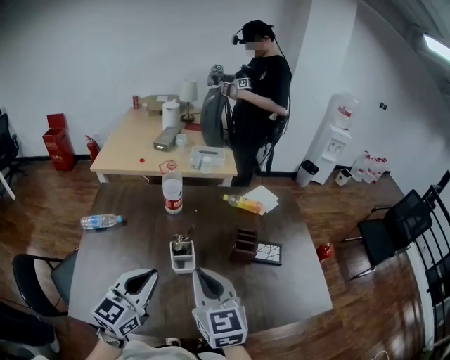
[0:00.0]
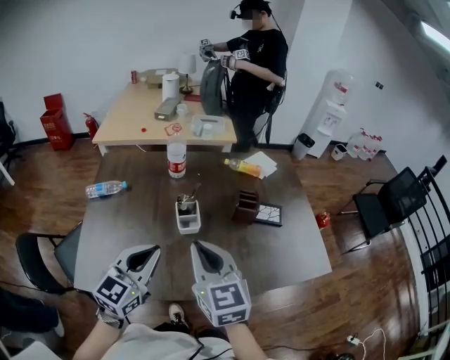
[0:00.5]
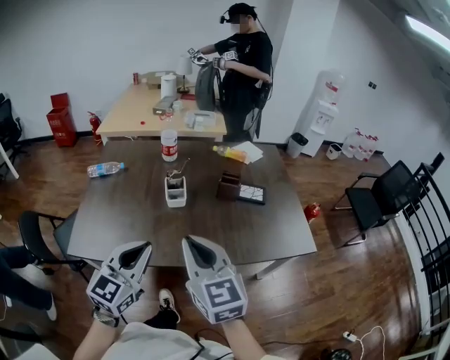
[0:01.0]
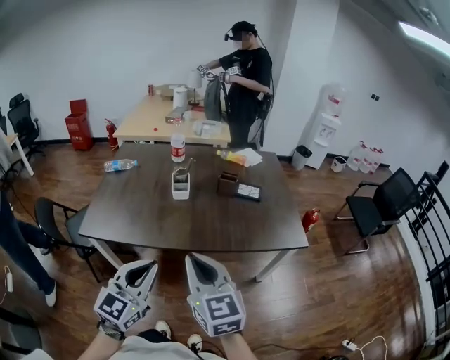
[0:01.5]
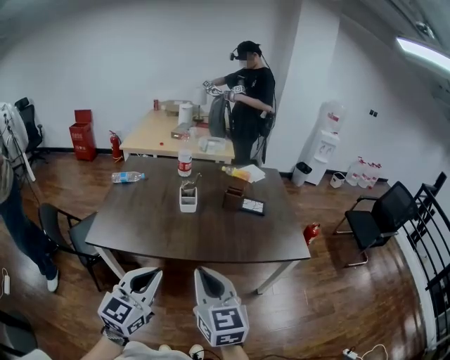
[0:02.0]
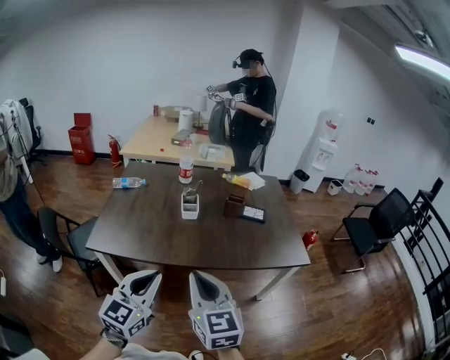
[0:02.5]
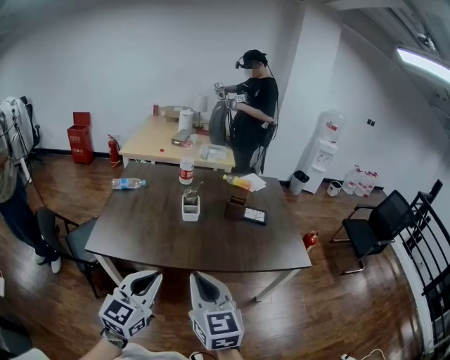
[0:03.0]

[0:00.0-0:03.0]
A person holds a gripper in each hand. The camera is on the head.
0:00.0 to 0:01.5: Both grippers move backward, roughly 40 cm.
0:01.5 to 0:03.0: The grippers both shift to the left by approximately 5 cm.

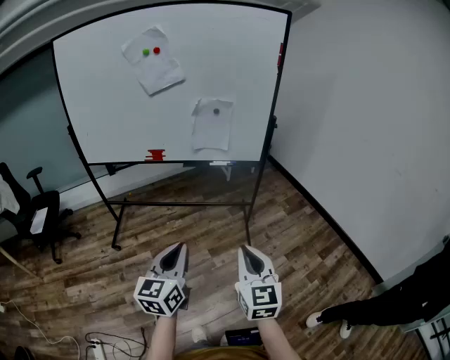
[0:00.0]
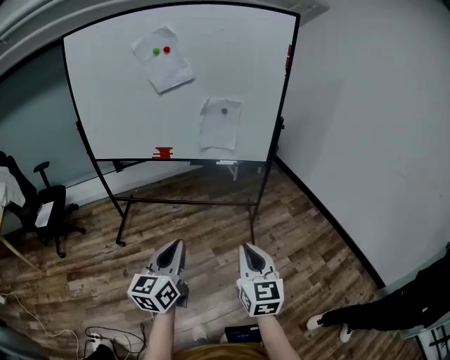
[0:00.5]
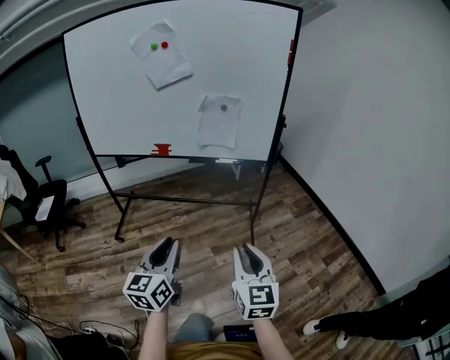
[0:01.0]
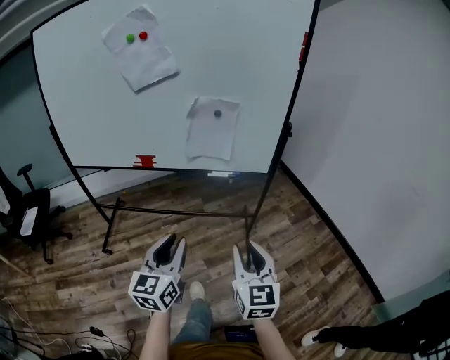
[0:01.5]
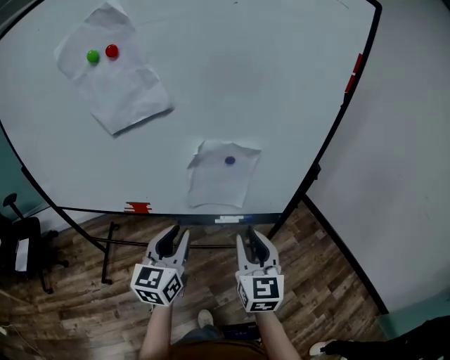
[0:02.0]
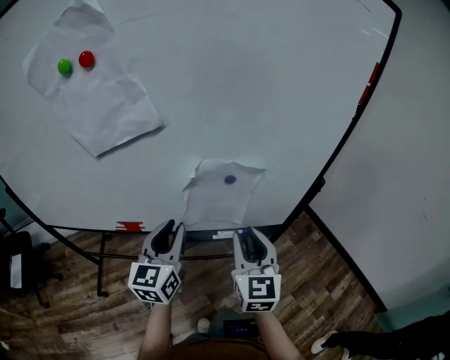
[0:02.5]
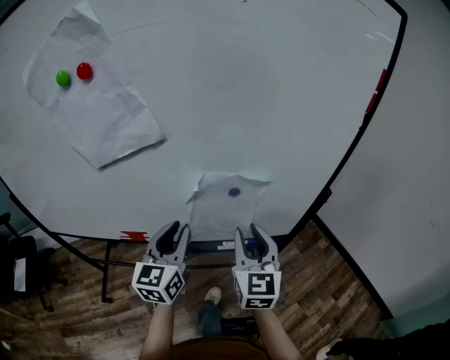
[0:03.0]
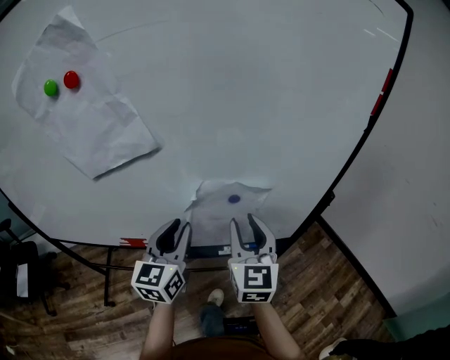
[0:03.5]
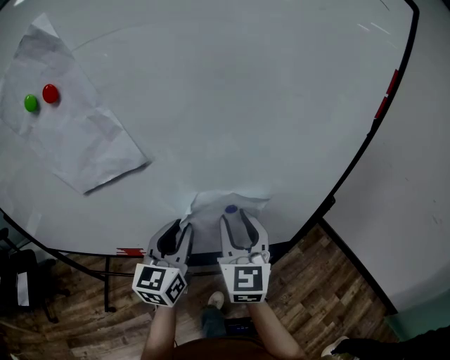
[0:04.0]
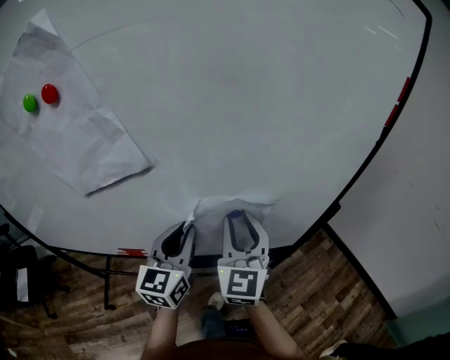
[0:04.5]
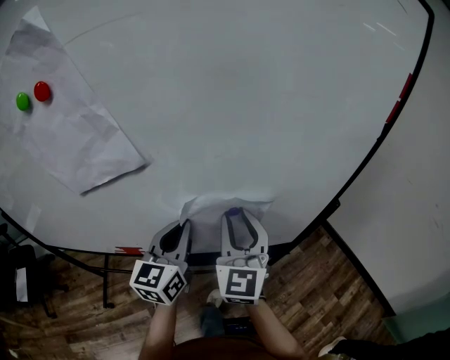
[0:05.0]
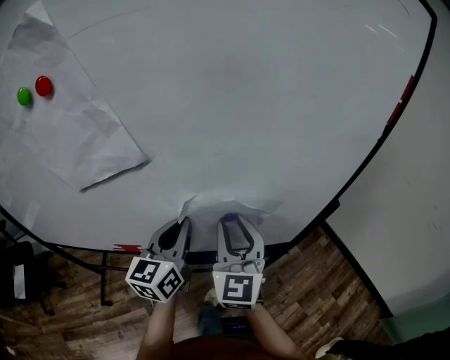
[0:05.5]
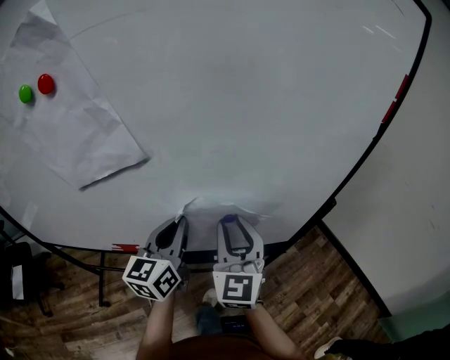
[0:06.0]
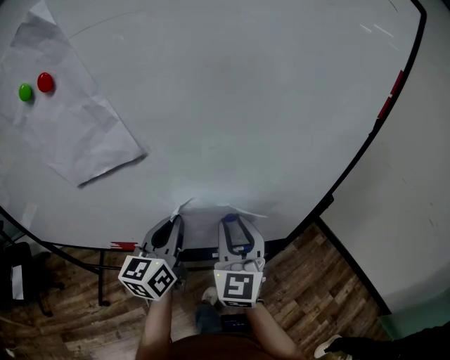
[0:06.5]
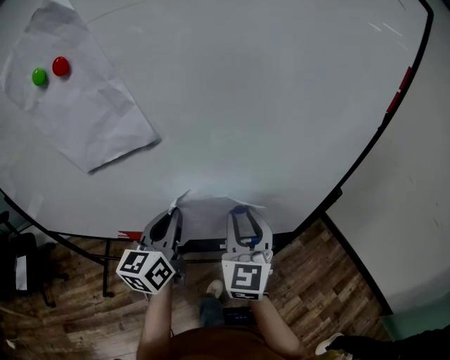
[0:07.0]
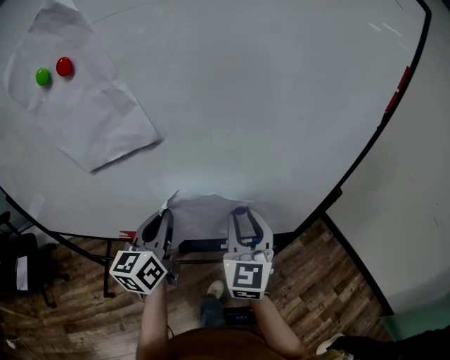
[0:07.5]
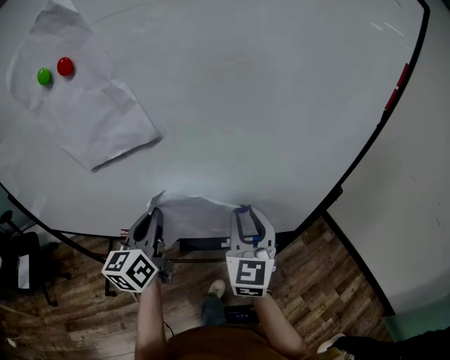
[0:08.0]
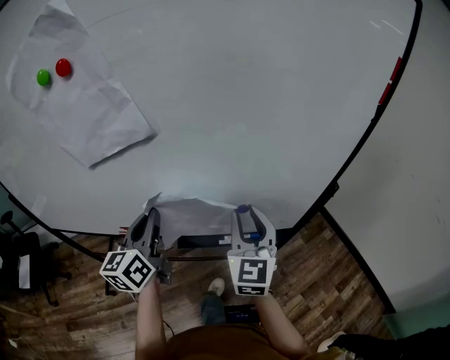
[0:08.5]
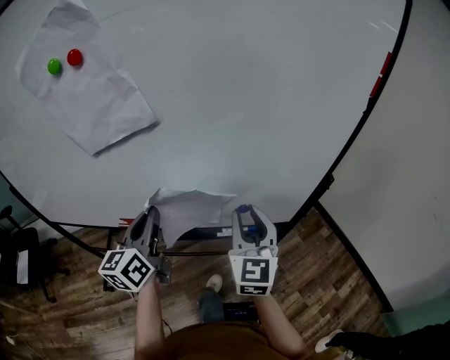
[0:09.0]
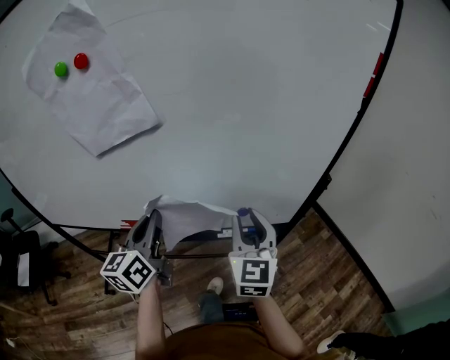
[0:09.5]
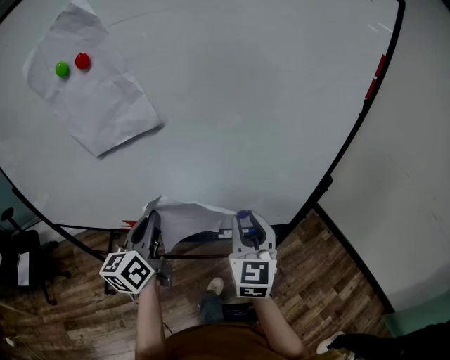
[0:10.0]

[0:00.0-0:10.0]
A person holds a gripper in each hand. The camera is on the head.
0:00.0 to 0:02.0: Both grippers are carried forward, some 50 cm. The right gripper opens its fingers, while the left gripper opens up.
0:02.0 to 0:04.0: The grippers both shift forward by roughly 20 cm.
0:04.0 to 0:06.0: The left gripper closes up.
0:06.0 to 0:08.0: The left gripper is displaced to the left by about 10 cm.
0:08.0 to 0:10.0: Both grippers move backward, some 5 cm.

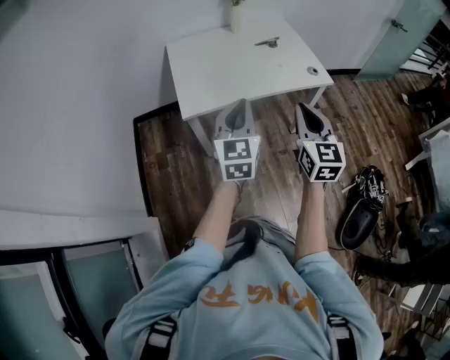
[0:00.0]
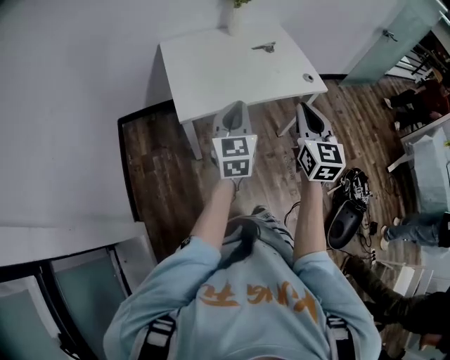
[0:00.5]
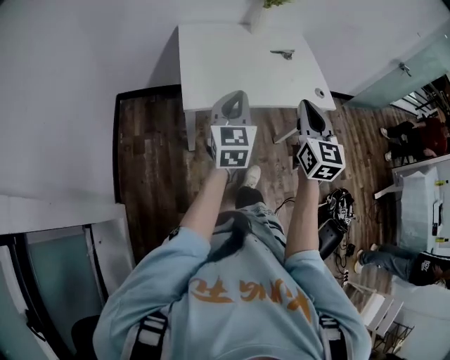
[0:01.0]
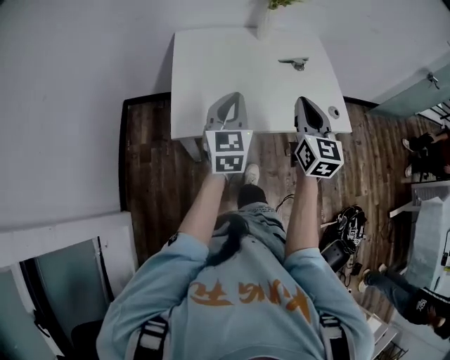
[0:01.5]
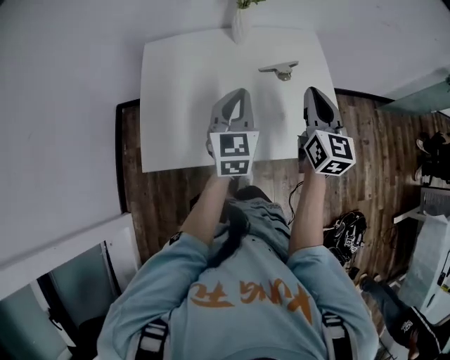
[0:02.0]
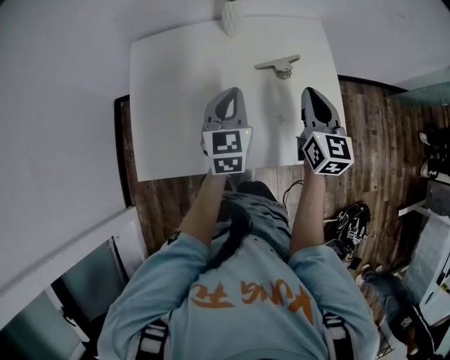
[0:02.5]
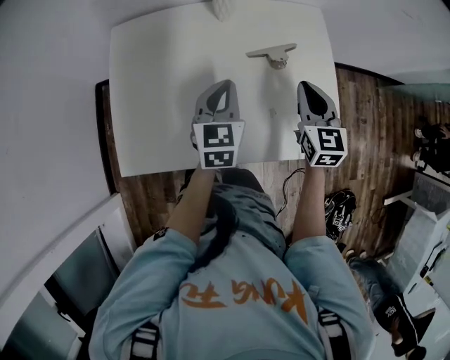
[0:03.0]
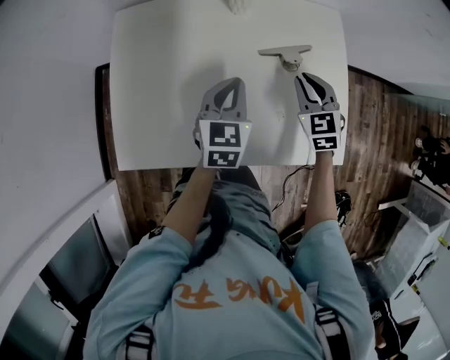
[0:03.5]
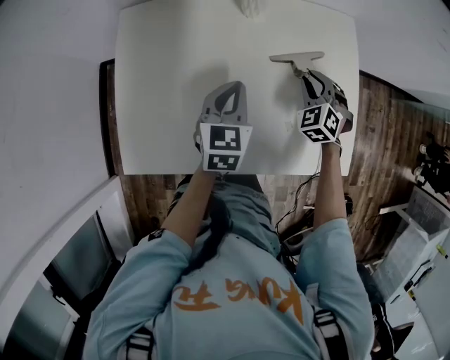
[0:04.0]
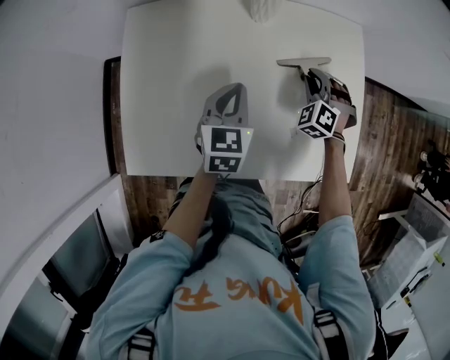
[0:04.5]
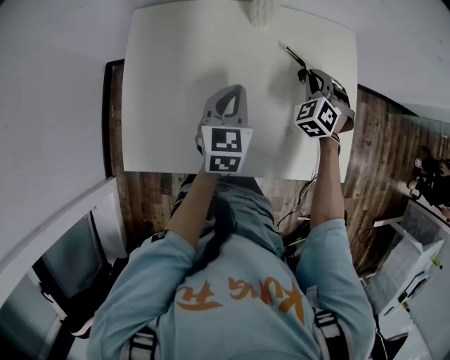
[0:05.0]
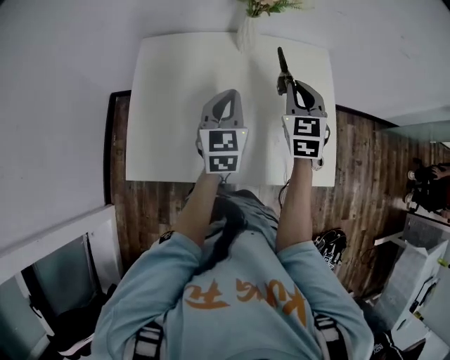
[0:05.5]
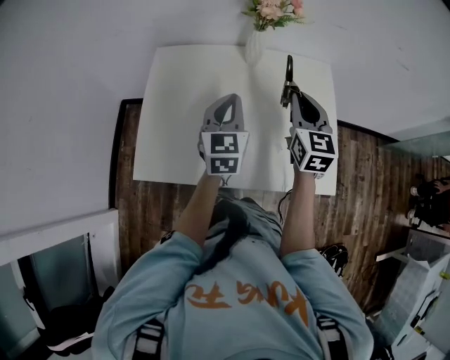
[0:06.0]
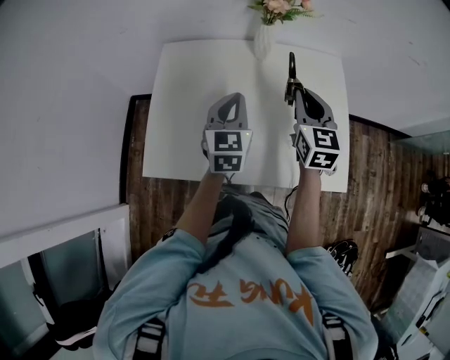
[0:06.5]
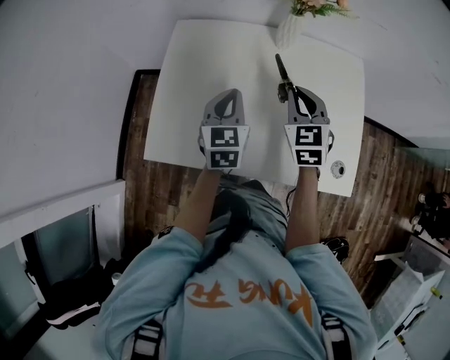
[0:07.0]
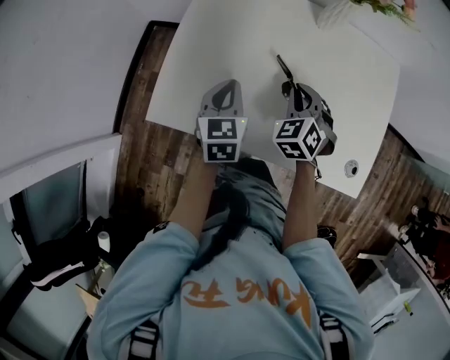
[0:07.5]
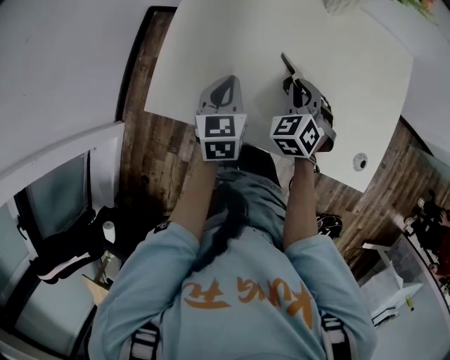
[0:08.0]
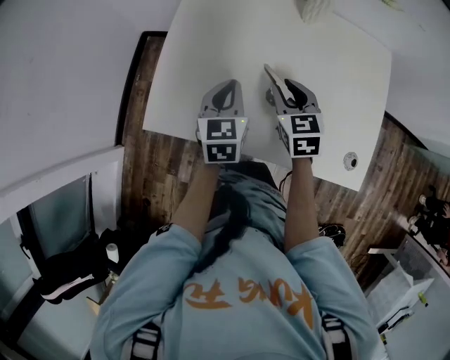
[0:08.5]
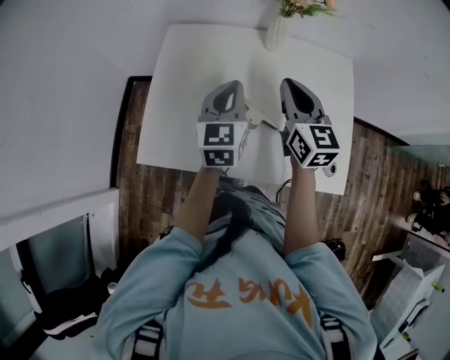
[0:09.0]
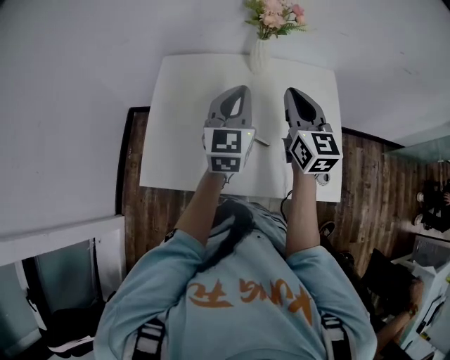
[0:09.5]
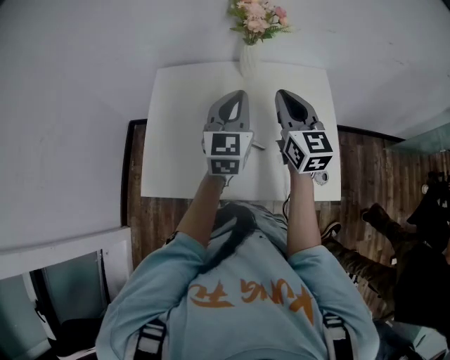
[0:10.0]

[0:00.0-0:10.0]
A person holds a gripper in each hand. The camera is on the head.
0:00.0 to 0:02.0: The two grippers travel together, forward, approximately 40 cm.
0:02.0 to 0:04.0: The left gripper goes roughly 15 cm downward and forward. The right gripper heads downward and forward, covering approximately 30 cm, rotates around the line of its fingers by about 60 degrees, counterclockwise from behind, and opens up.
0:04.0 to 0:06.0: The left gripper heads upward, covering some 10 cm, while the right gripper moves upward, approximately 20 cm, and twists some 50 degrees clockwise, seen from behind.
0:06.0 to 0:08.0: Both grippers move downward and to the left, approximately 25 cm. The right gripper tilts its fingers about 30 degrees downward, while the left gripper changes its angle by roughly 30 degrees.
0:08.0 to 0:10.0: Both grippers move upward and to the right, roughly 30 cm. The right gripper angles its fingers upward, by roughly 40 degrees. Meanwhile the left gripper swivels about 40 degrees.

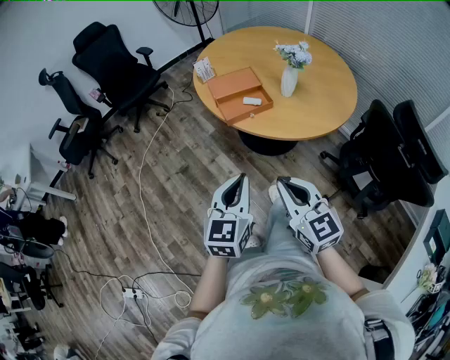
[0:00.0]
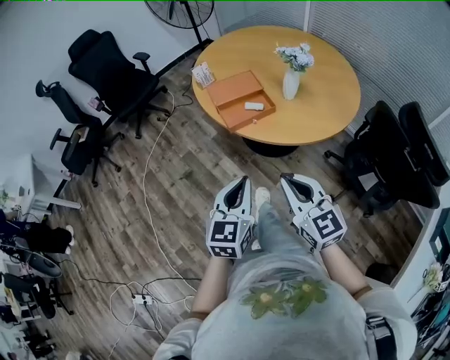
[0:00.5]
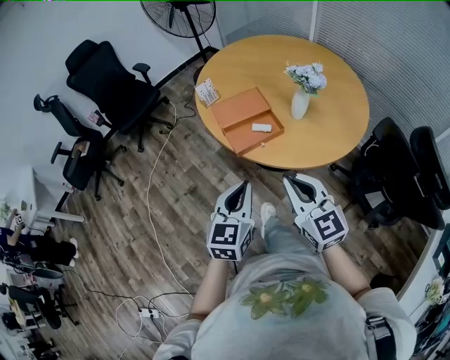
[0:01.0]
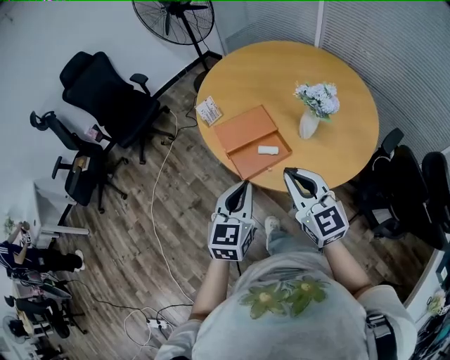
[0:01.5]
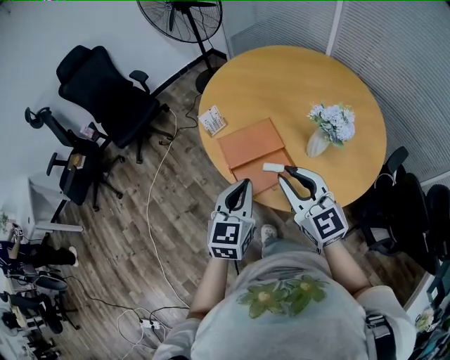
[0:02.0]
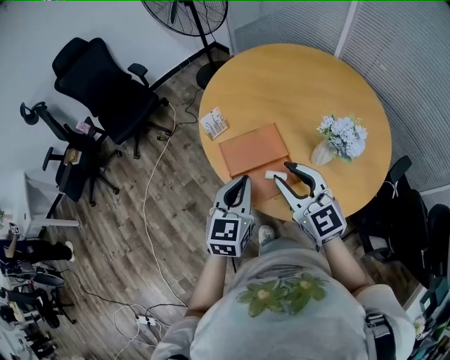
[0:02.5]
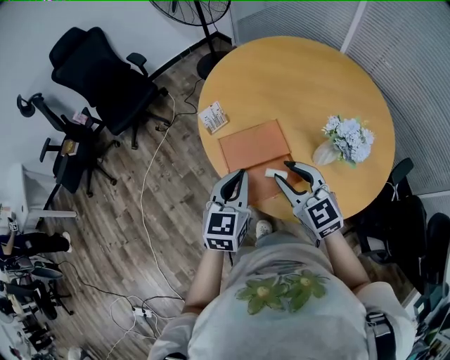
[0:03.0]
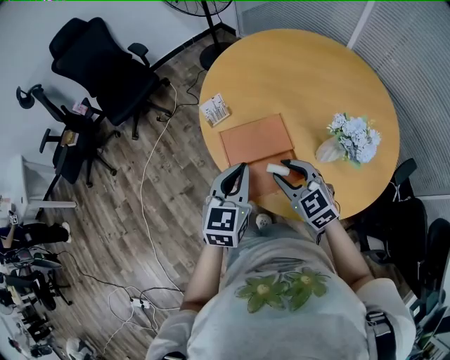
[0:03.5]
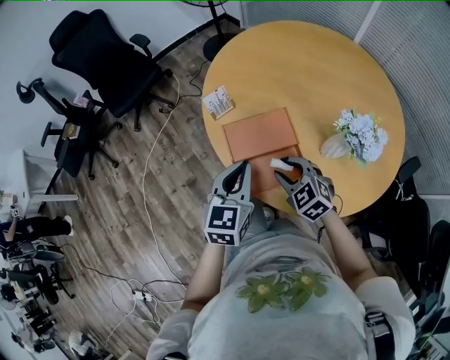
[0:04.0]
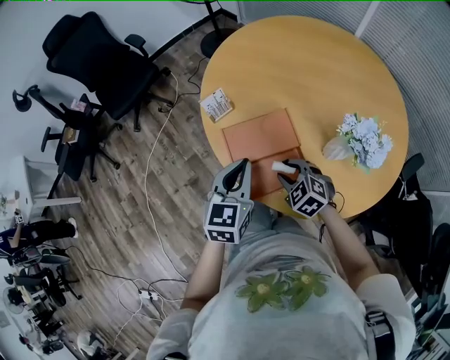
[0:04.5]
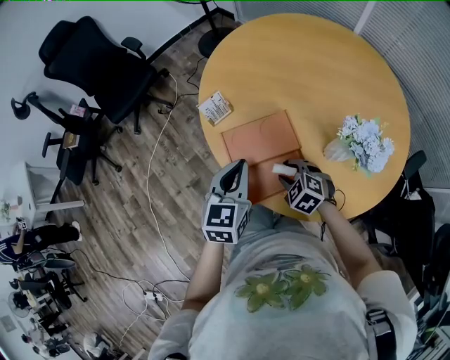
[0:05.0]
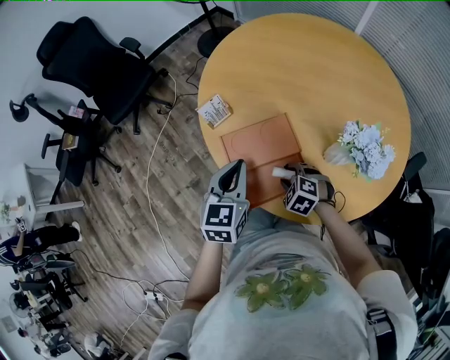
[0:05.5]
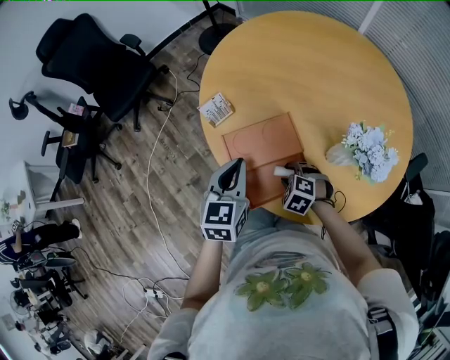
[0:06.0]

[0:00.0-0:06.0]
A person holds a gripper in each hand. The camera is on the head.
0:00.0 to 0:02.0: Both grippers move forward, roughly 35 cm.
0:02.0 to 0:04.0: The left gripper goes about 10 cm forward. Meanwhile the right gripper heads downward and forward, covering about 20 cm, and tilts its fingers roughly 30 degrees downward.
0:04.0 to 0:06.0: The left gripper shifts about 5 cm forward; the right gripper goes roughly 15 cm downward, and rotates roughly 30 degrees.
